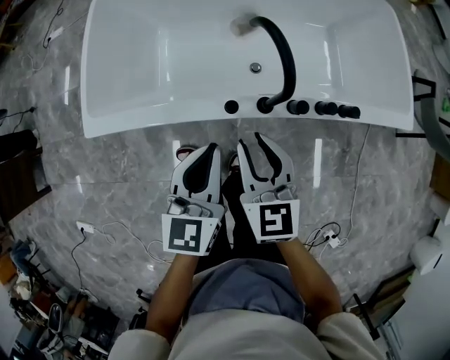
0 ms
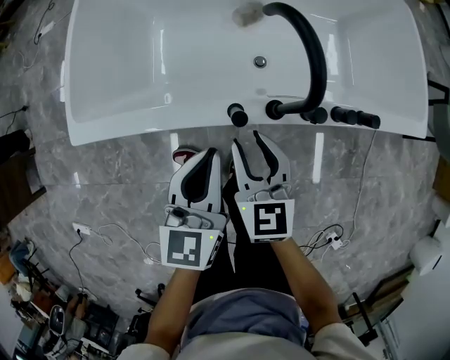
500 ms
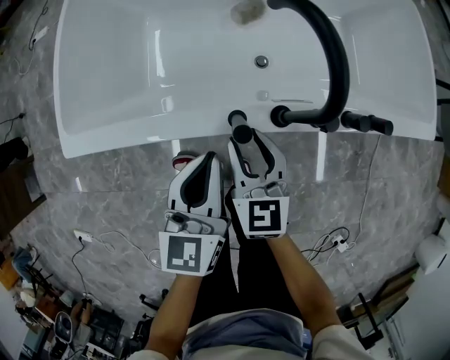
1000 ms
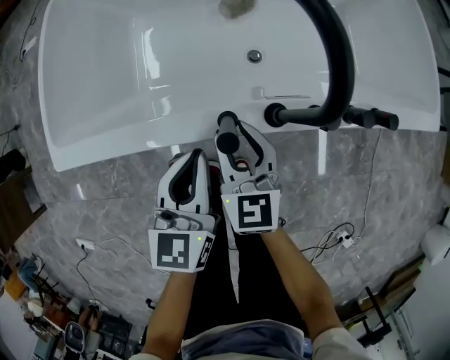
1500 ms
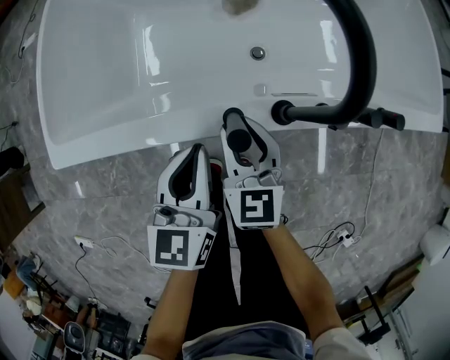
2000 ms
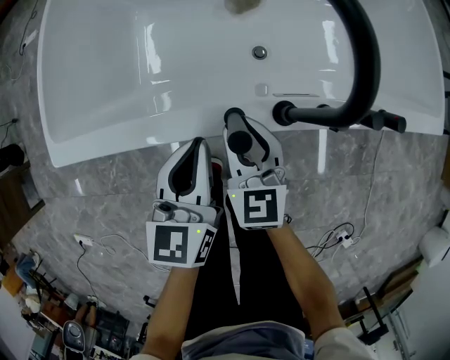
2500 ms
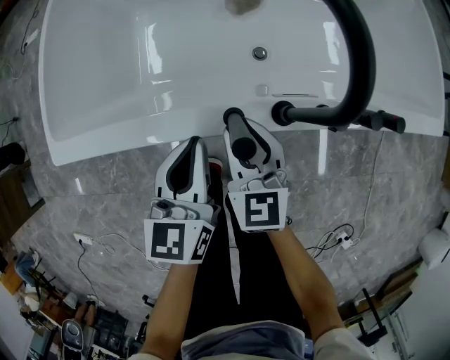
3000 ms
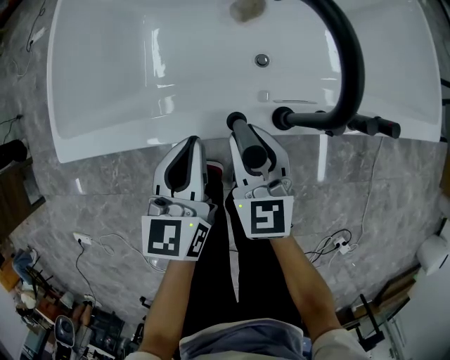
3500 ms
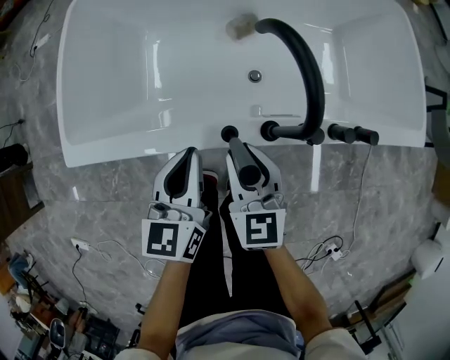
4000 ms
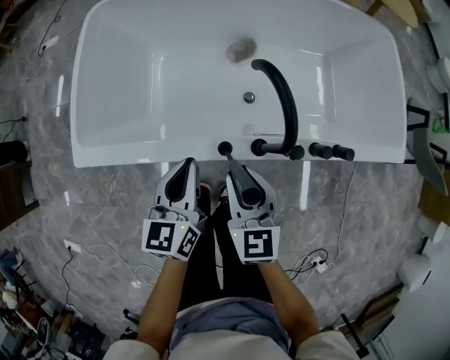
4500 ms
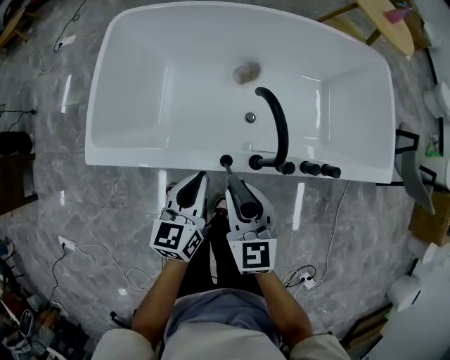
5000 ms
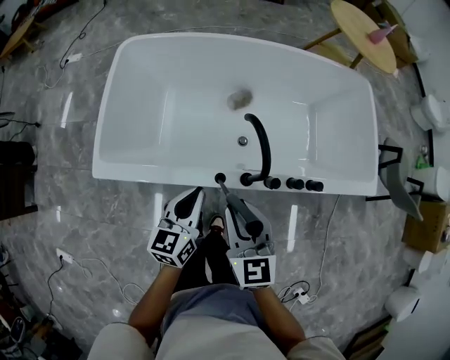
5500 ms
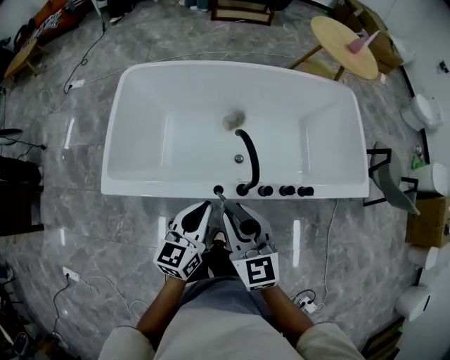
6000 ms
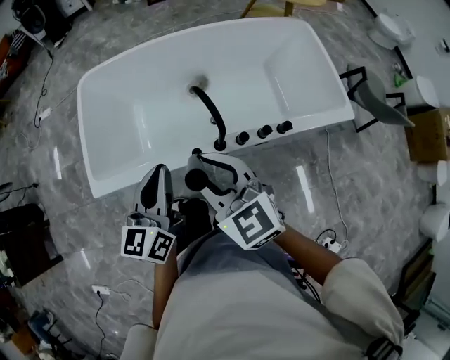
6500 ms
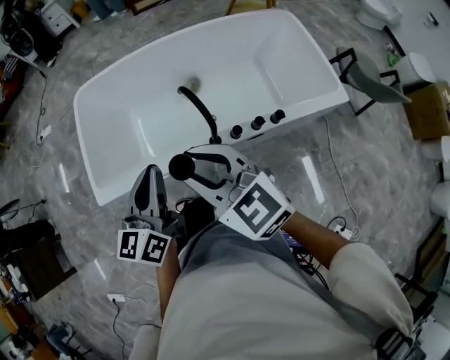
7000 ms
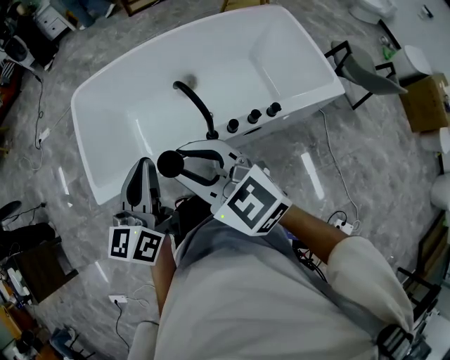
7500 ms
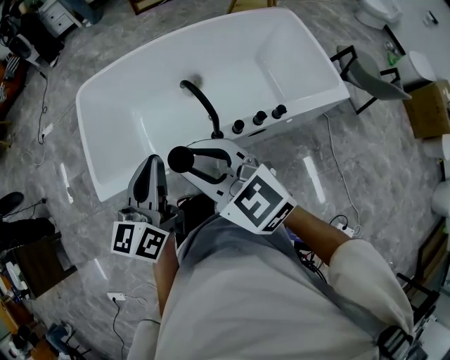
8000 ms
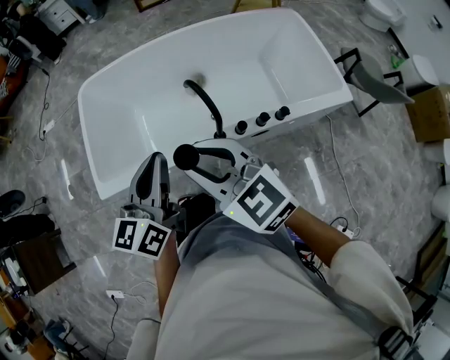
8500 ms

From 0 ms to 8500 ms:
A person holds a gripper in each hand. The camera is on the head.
From 0 ms to 2000 ms: The two grippers go some 20 cm downward.
From 2000 ms to 4000 ms: Both grippers travel together upward, some 5 cm.
From 4000 ms to 6500 ms: The two grippers go some 30 cm upward. The right gripper swivels about 20 degrees.
From 6500 ms to 8500 ms: The grippers move only a little.

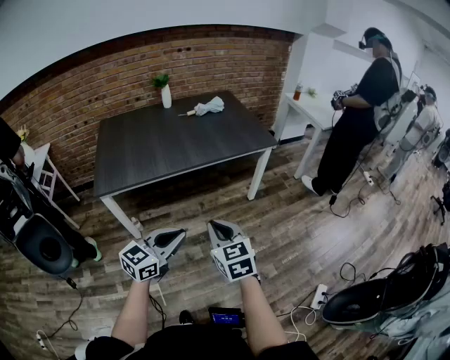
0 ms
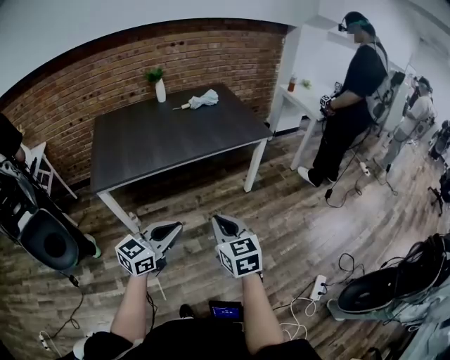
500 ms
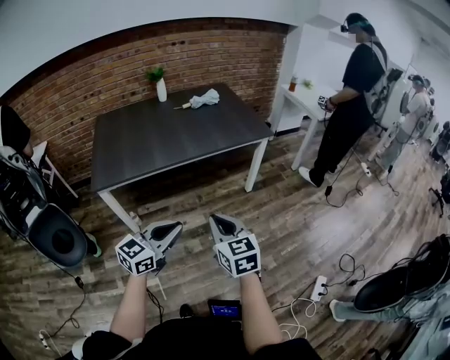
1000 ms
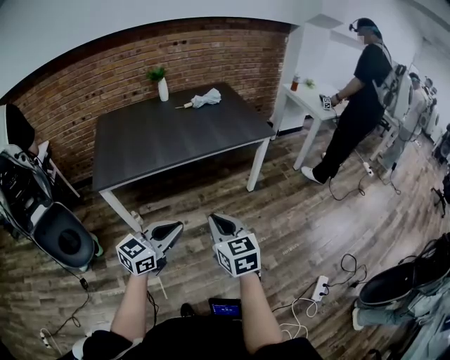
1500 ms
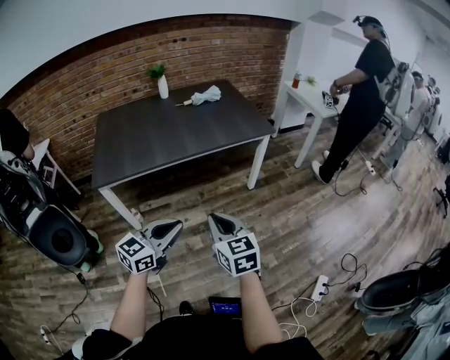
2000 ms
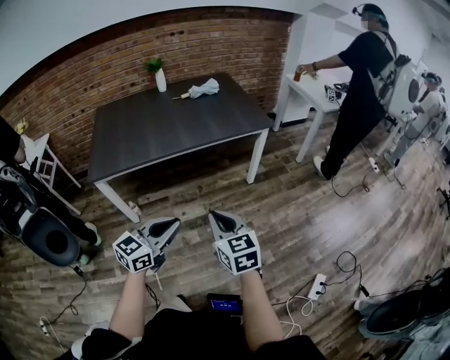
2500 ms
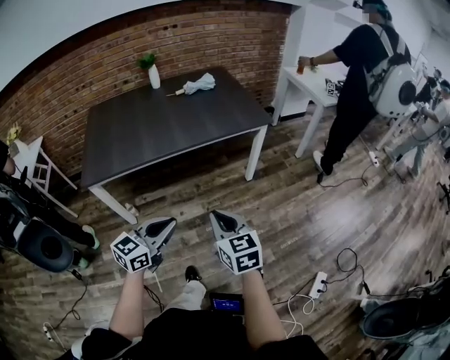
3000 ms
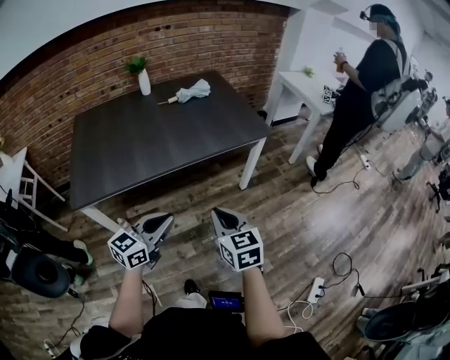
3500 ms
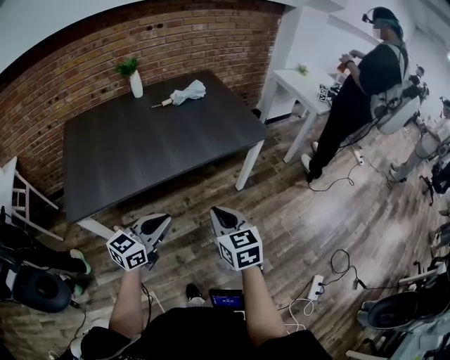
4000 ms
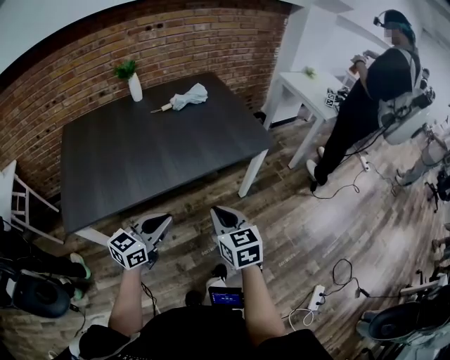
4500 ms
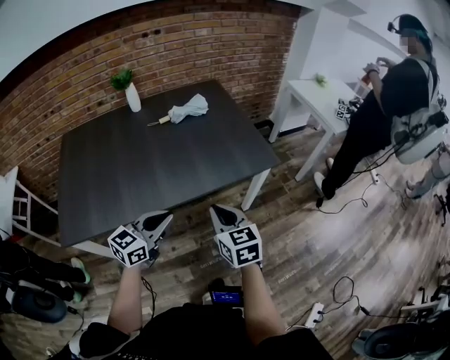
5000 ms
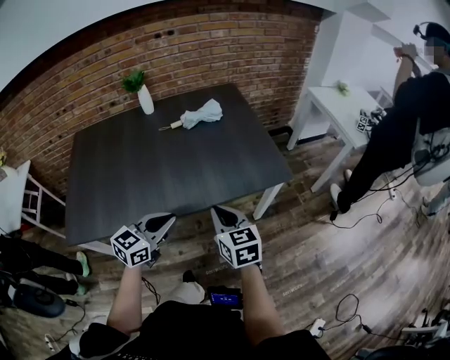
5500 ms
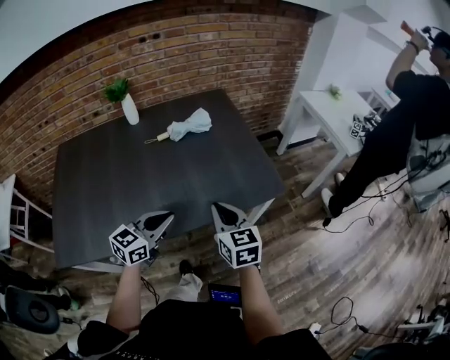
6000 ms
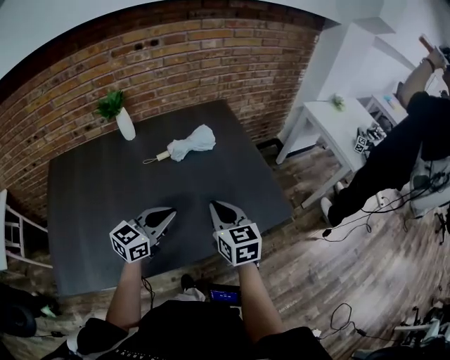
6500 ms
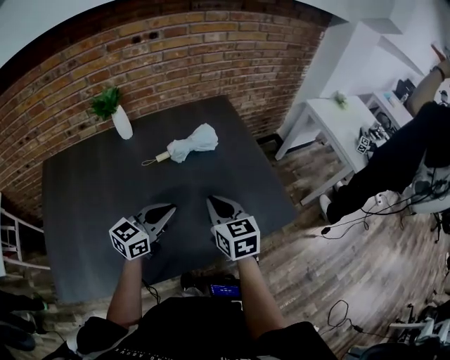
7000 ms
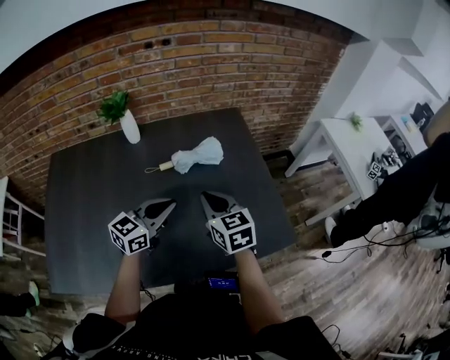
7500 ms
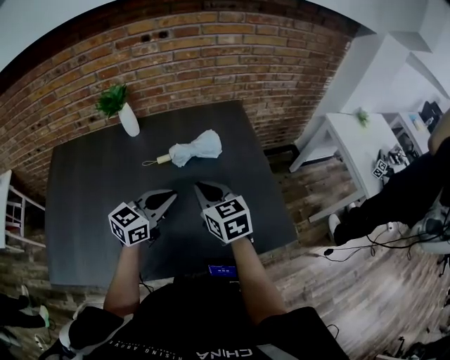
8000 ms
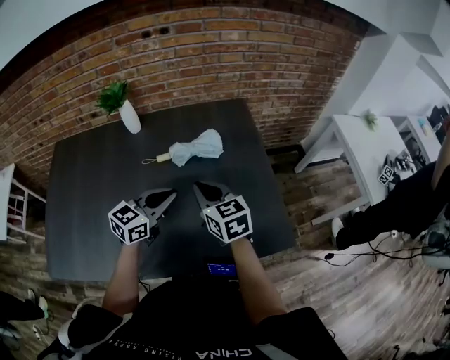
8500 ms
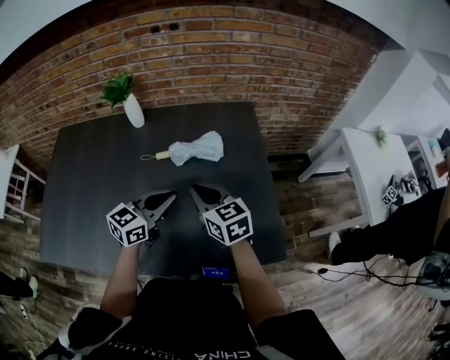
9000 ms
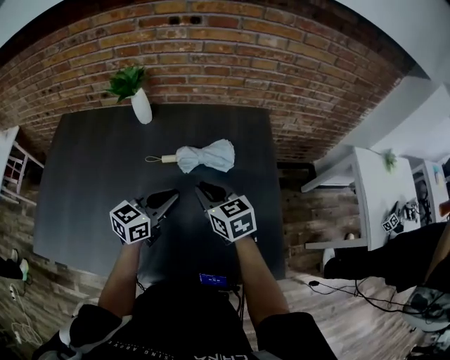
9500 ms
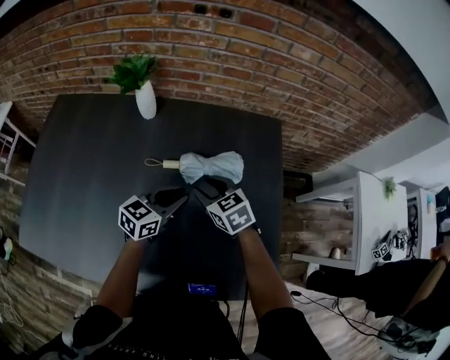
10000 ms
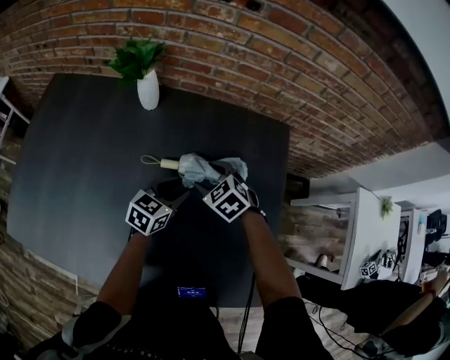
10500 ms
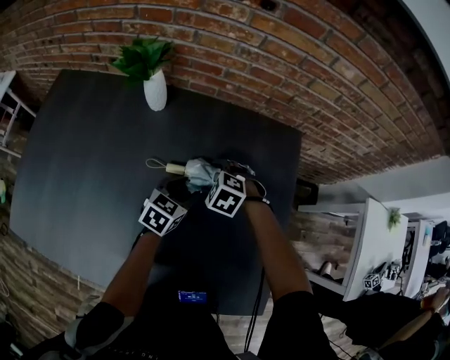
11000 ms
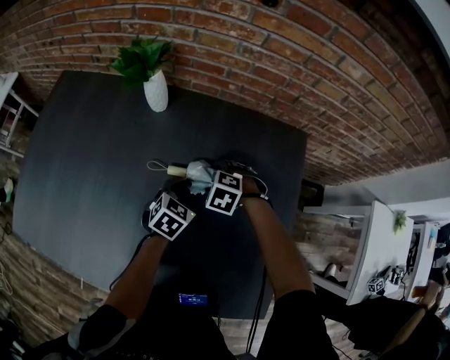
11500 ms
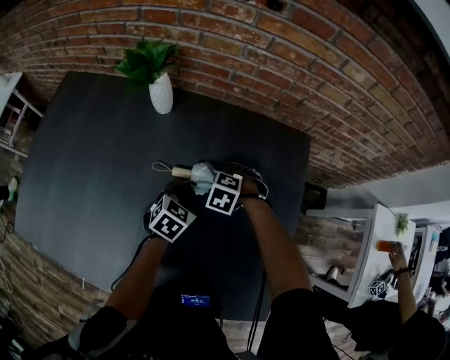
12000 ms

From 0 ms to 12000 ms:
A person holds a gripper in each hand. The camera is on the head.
From 0 ms to 2000 ms: There are only small adjustments of the grippers.
From 2000 ms to 4000 ms: Both grippers travel together forward, roughly 25 cm.
From 4000 ms to 6000 ms: Both grippers travel together forward, approximately 35 cm.
From 6000 ms to 8000 ms: Both grippers move forward, approximately 25 cm.
From 8000 ms to 10000 ms: Both grippers travel together forward and downward, roughly 20 cm. The right gripper changes its angle by roughly 30 degrees, and opens up.
From 10000 ms to 12000 ms: The grippers both shift downward by some 10 cm. The left gripper turns by approximately 30 degrees, and opens its fingers. Meanwhile the right gripper points its fingers roughly 40 degrees further downward, and opens its fingers.

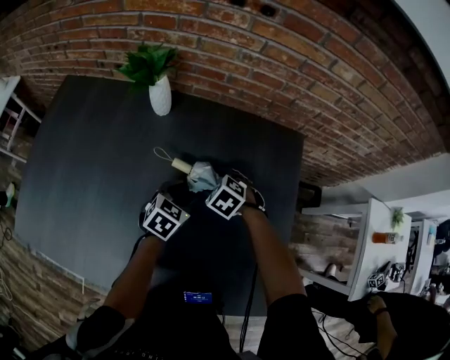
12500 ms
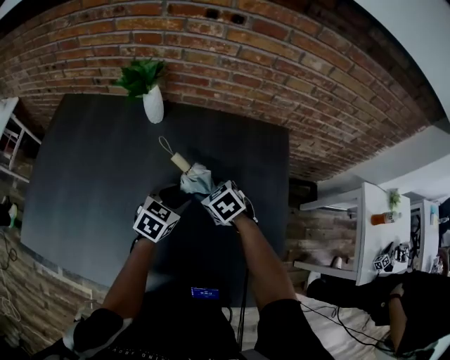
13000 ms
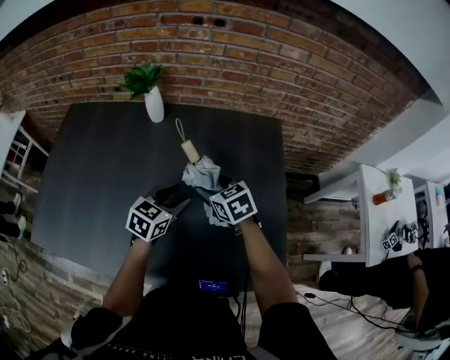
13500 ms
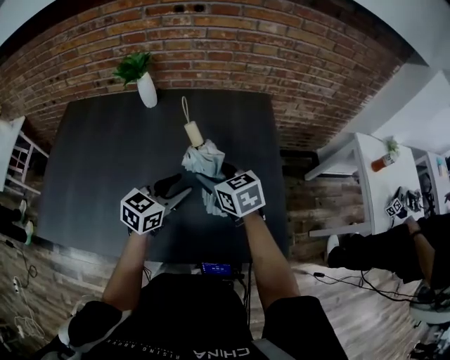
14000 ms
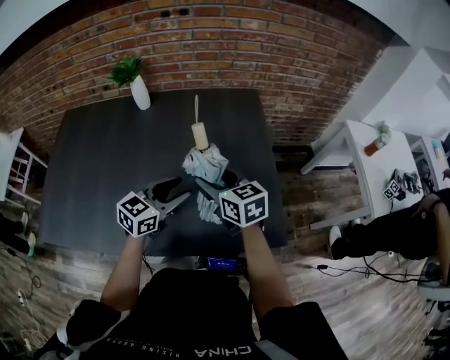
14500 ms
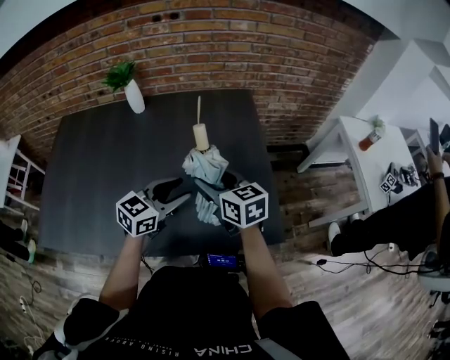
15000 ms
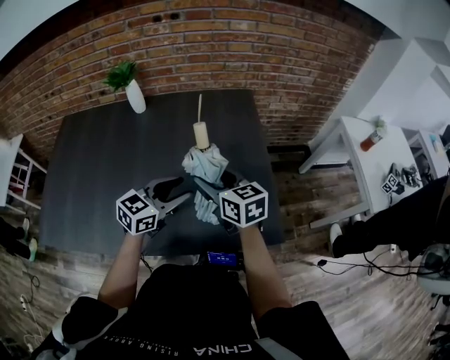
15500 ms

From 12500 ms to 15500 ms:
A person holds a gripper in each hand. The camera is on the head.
From 12500 ms to 14000 ms: The two grippers go roughly 25 cm backward and upward. The left gripper rotates about 20 degrees, while the right gripper tips its fingers upward by roughly 40 degrees.
From 14000 ms to 15500 ms: The two grippers go approximately 10 cm backward and to the right.

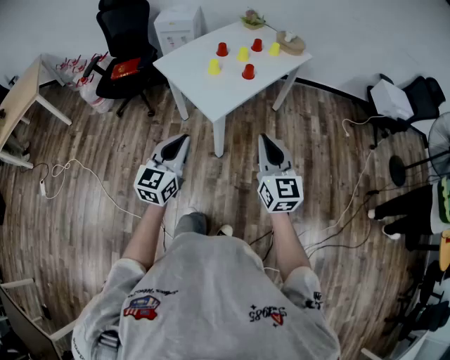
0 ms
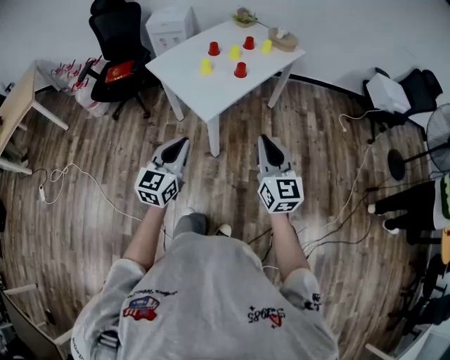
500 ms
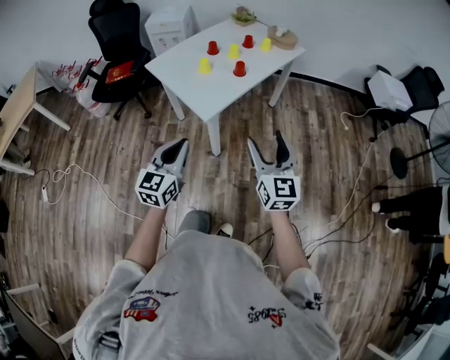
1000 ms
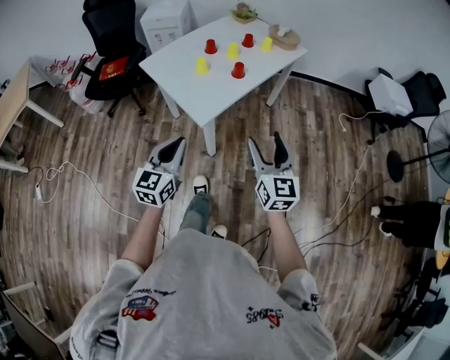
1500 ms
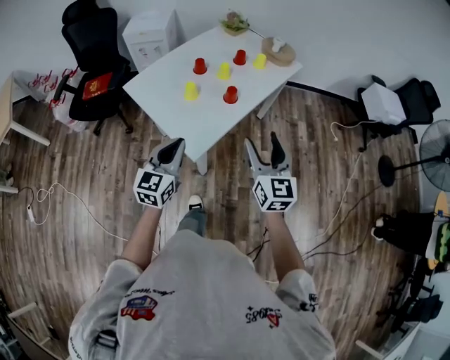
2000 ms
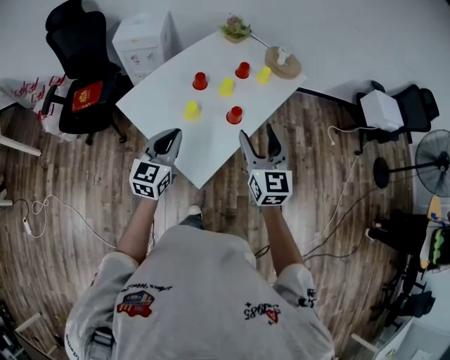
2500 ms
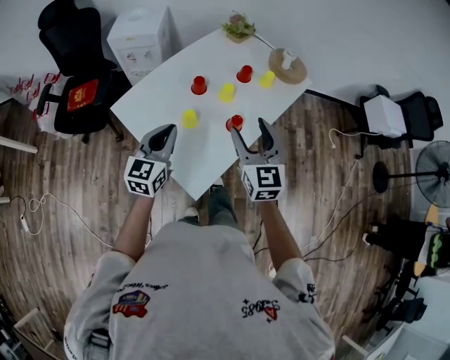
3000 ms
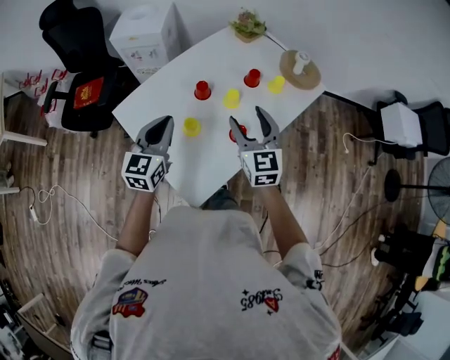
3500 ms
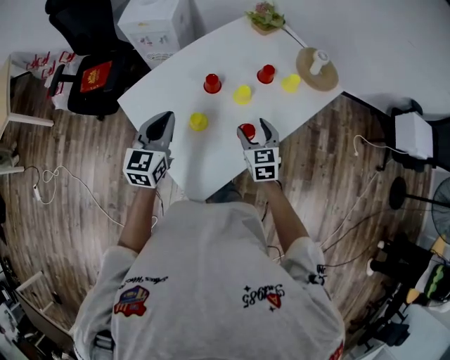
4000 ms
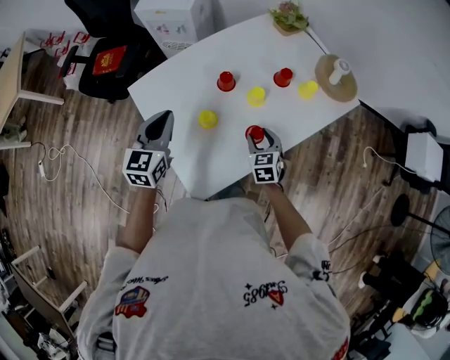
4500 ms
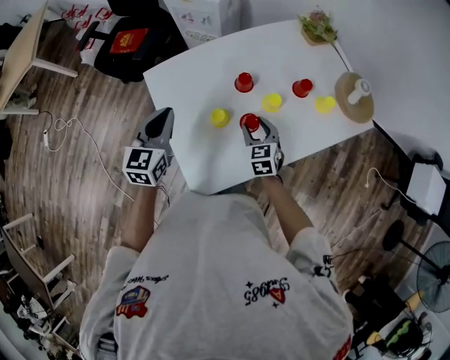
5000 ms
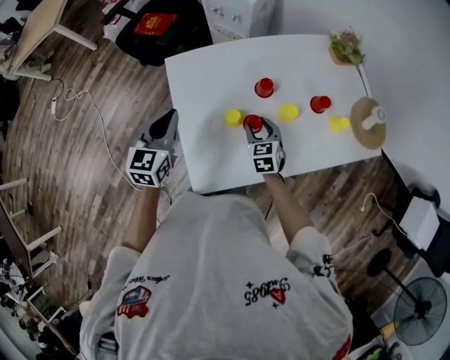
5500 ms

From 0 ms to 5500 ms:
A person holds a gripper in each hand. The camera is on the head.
From 0 ms to 2000 ms: Both grippers travel together forward, about 25 cm. The right gripper opens its fingers.
From 2000 ms to 3500 ms: The grippers both shift forward by some 35 cm.
From 3500 ms to 5500 ms: The right gripper shifts approximately 25 cm downward, and turns by roughly 40 degrees, while the left gripper changes place by approximately 10 cm, and turns by roughly 30 degrees.
